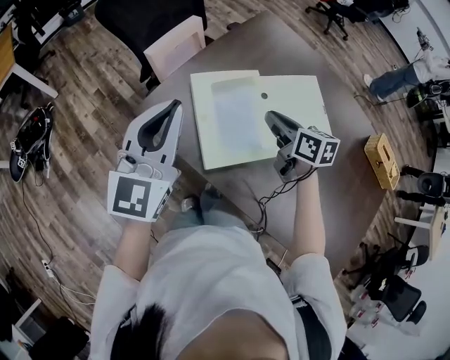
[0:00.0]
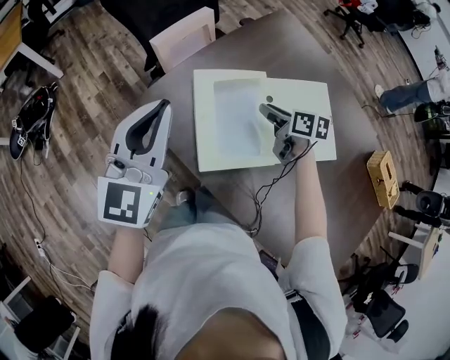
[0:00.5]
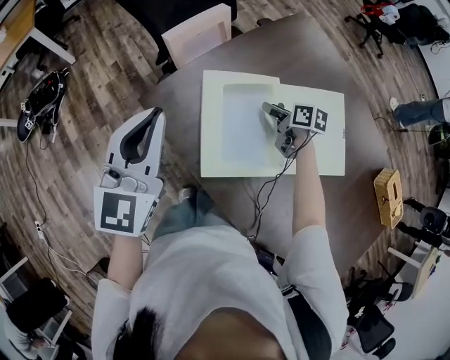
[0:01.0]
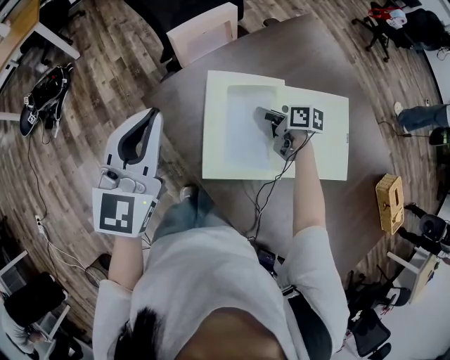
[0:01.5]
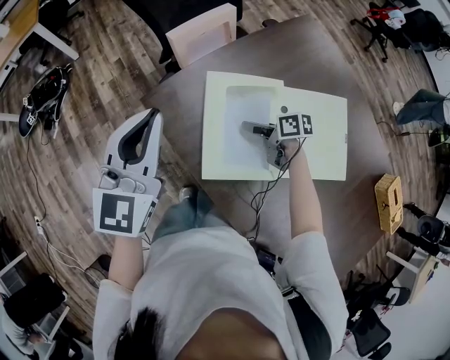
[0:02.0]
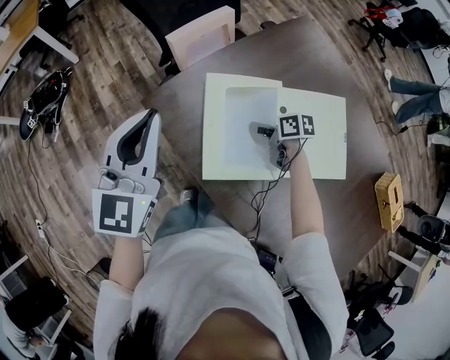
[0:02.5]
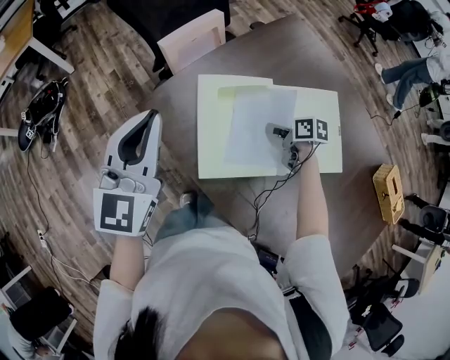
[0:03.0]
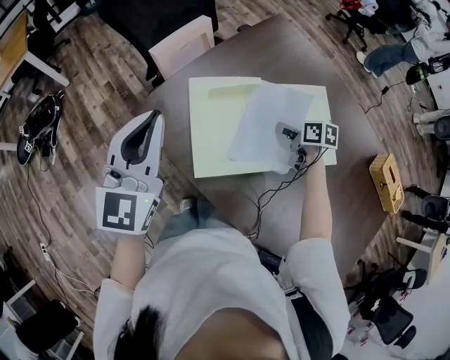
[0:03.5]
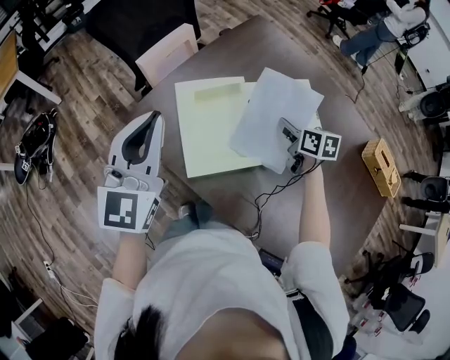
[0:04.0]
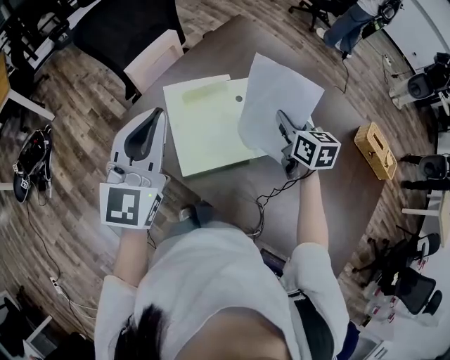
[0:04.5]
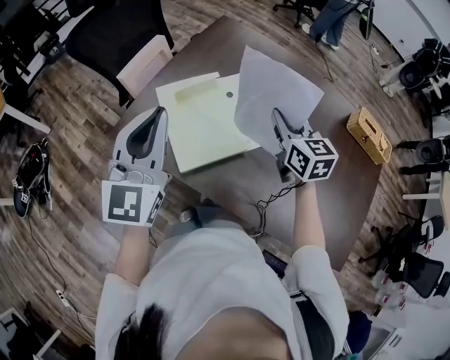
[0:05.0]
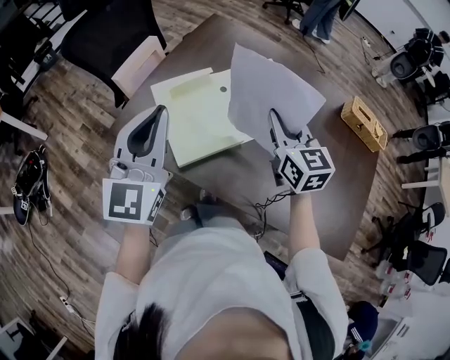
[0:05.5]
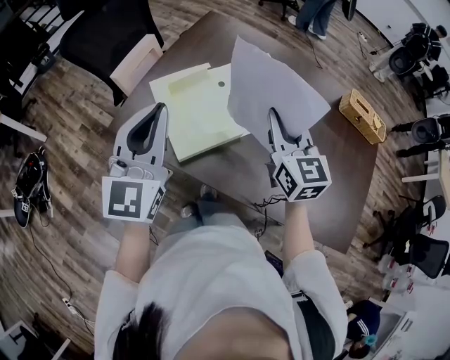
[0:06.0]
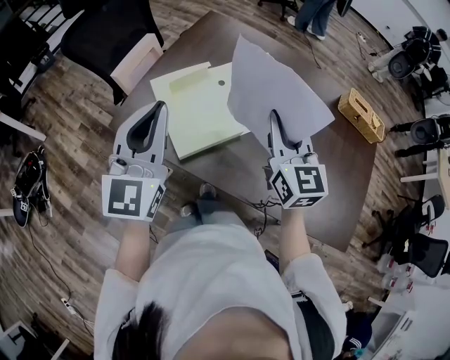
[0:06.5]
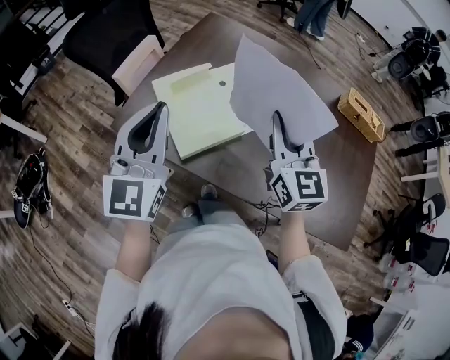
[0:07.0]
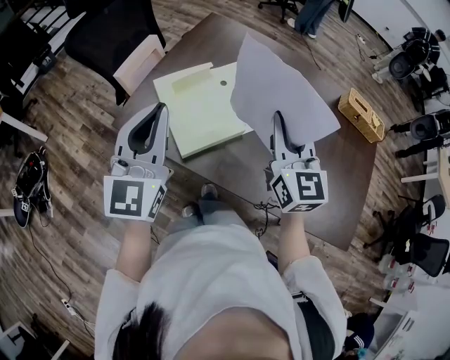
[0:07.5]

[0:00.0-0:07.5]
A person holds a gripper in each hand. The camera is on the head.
0:00.0 to 0:02.0: The left gripper shifts by approximately 5 cm. The right gripper is displaced downward by roughly 15 cm, turns by some 40 degrees, and opens its fingers.
0:02.0 to 0:04.0: The left gripper shifts by some 10 cm; the right gripper shifts by some 20 cm, changes its angle by approximately 40 degrees, and closes up.
0:04.0 to 0:05.5: The right gripper goes roughly 20 cm upward and backward, and rotates roughly 40 degrees, while the left gripper moves to the right and backward, roughly 10 cm.
0:05.5 to 0:07.5: The right gripper moves backward and upward, about 10 cm.

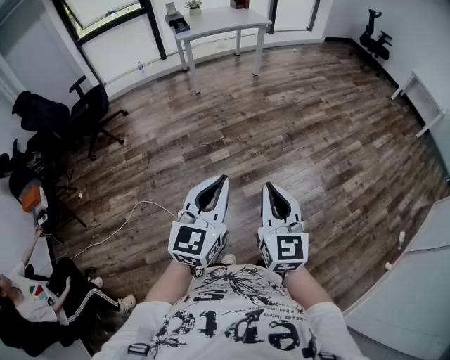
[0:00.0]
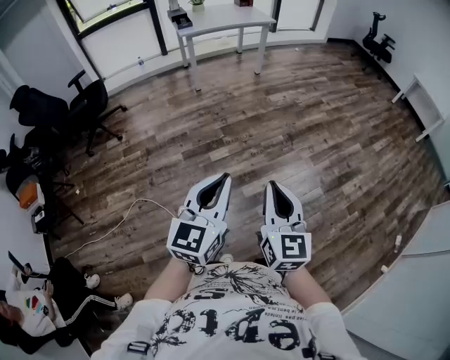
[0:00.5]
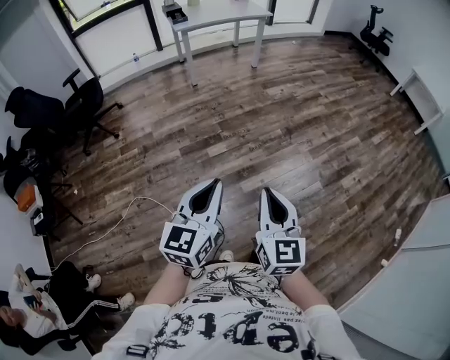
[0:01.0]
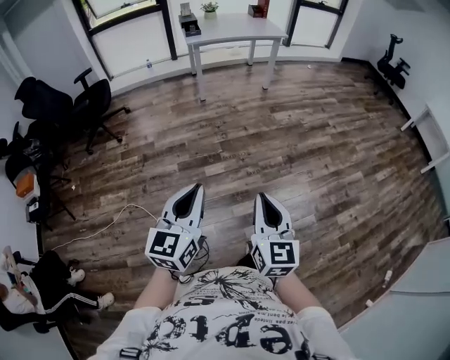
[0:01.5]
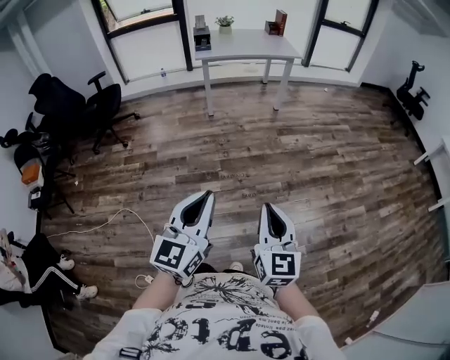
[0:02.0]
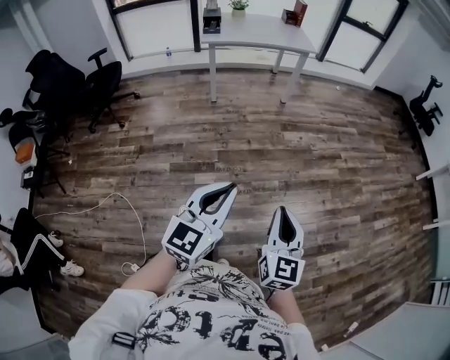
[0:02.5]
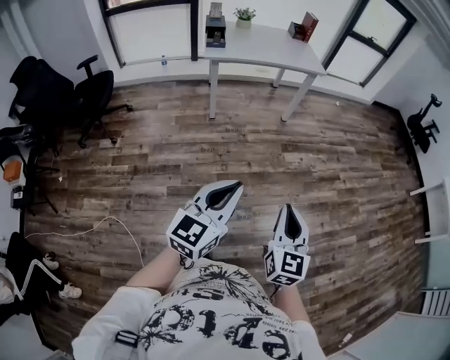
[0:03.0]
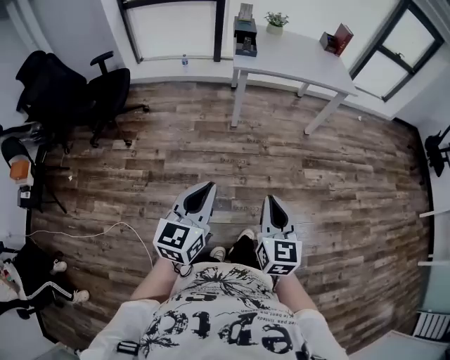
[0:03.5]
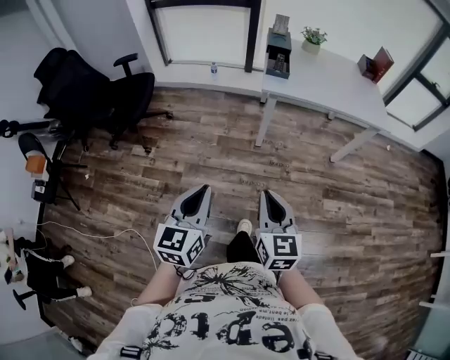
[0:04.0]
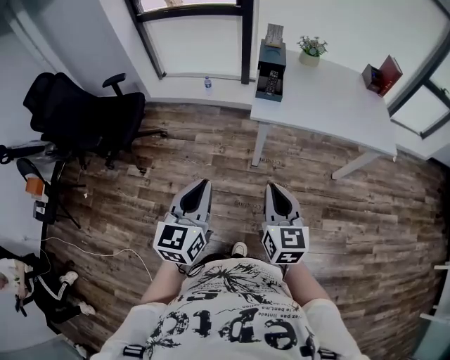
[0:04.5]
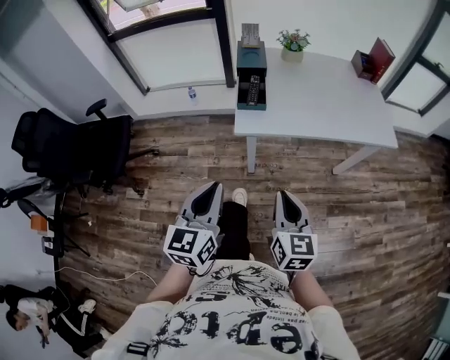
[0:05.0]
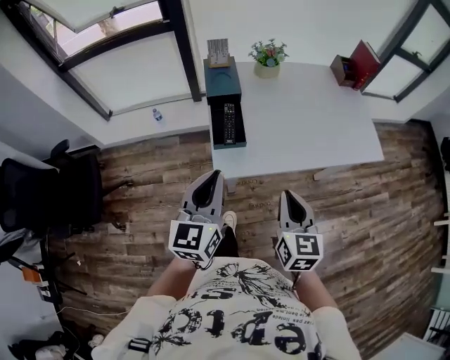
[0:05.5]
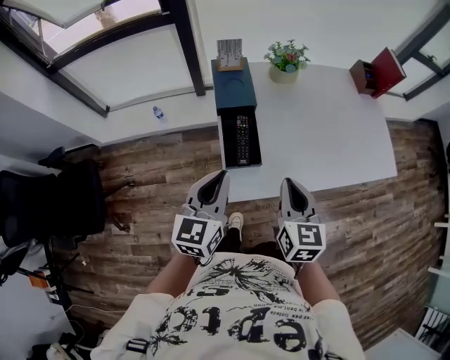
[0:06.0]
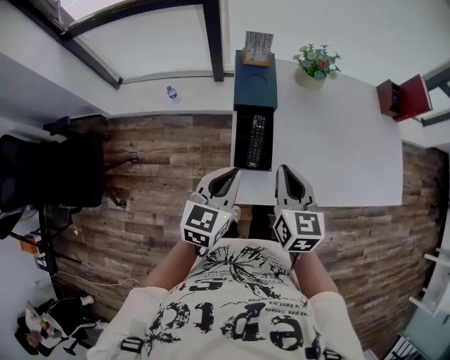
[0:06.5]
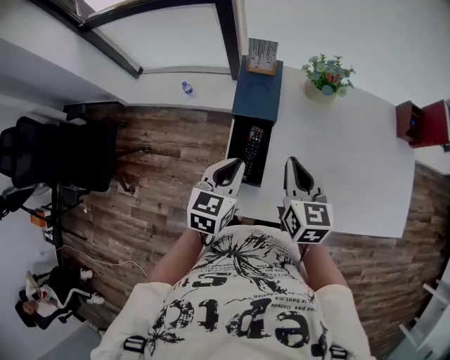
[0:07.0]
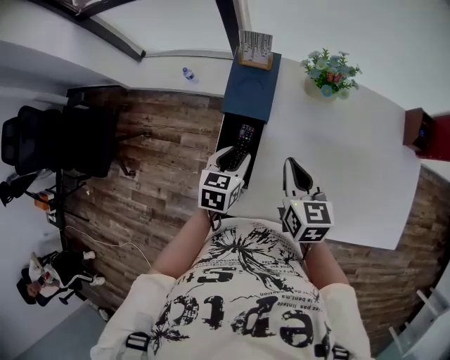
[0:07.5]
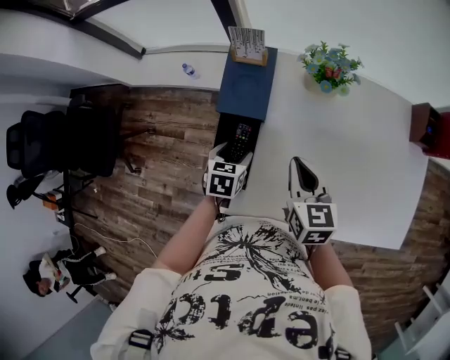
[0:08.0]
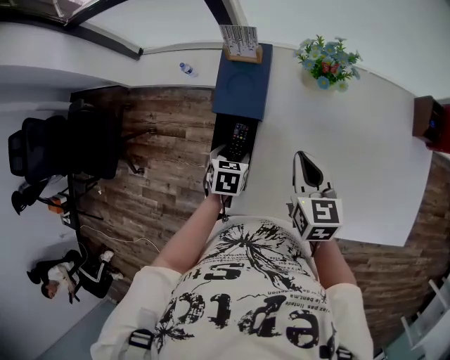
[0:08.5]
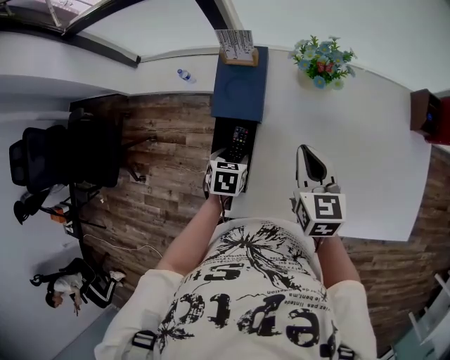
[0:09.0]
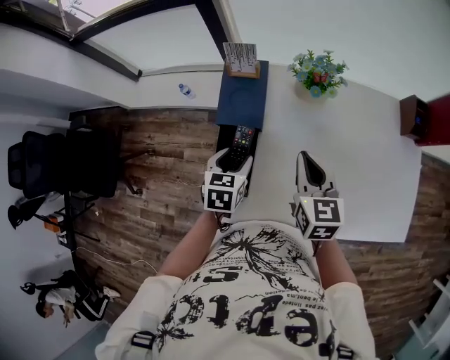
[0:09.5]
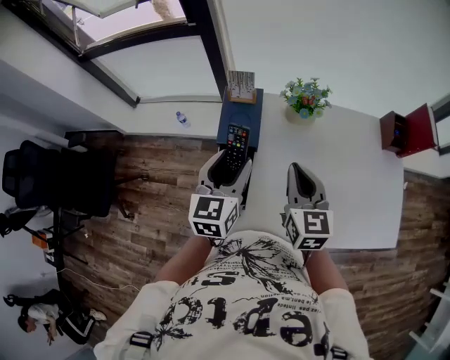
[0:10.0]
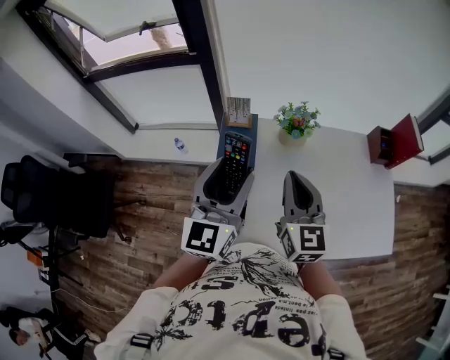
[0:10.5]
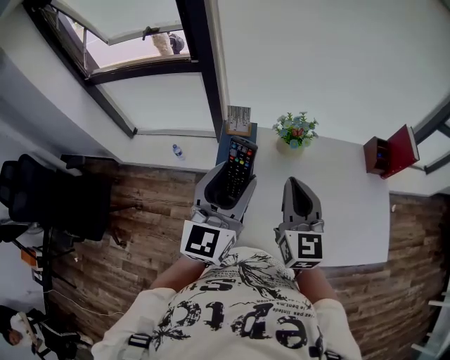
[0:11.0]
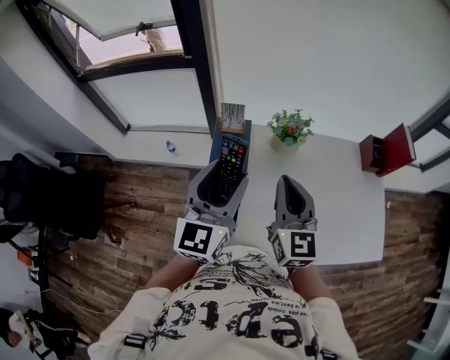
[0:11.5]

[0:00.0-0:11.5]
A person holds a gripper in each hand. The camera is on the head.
0:00.0 to 0:02.0: Both grippers travel together forward and to the right, about 25 cm.
0:02.0 to 0:04.0: The pair of grippers is taken about 70 cm. The right gripper rotates about 20 degrees. The left gripper swivels approximately 30 degrees.
0:04.0 to 0:06.0: The pair of grippers is taken forward, some 70 cm. The right gripper changes its angle by approximately 20 degrees.
0:06.0 to 0:07.5: The right gripper is displaced forward by about 20 cm, and rotates about 30 degrees. The left gripper goes about 25 cm downward, forward and to the right, turns by about 30 degrees, and opens its fingers.
0:07.5 to 0:09.5: The right gripper shifts by some 5 cm; the left gripper moves some 10 cm downward and comes back, and opens.
0:09.5 to 0:11.5: The right gripper goes approximately 15 cm upward, and swivels approximately 30 degrees. Meanwhile the left gripper travels upward by about 30 cm, and points its fingers approximately 50 degrees further upward.

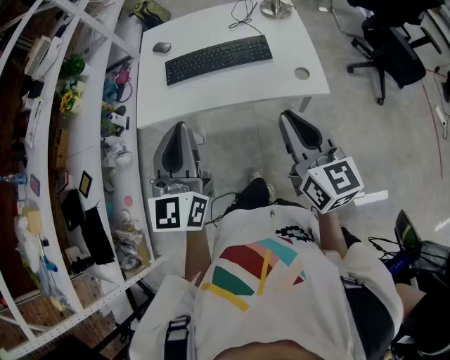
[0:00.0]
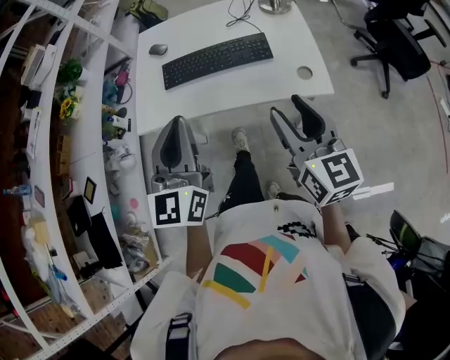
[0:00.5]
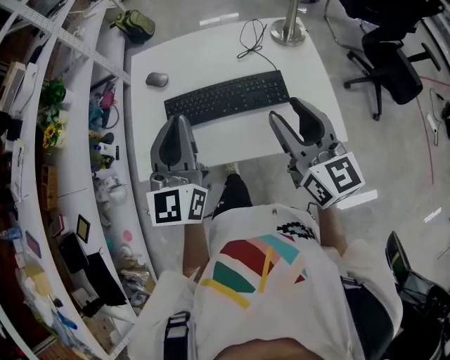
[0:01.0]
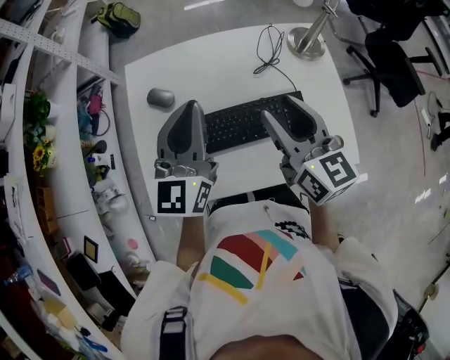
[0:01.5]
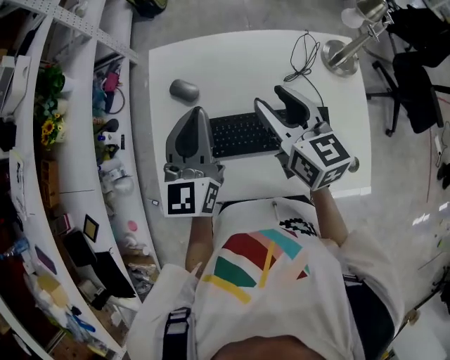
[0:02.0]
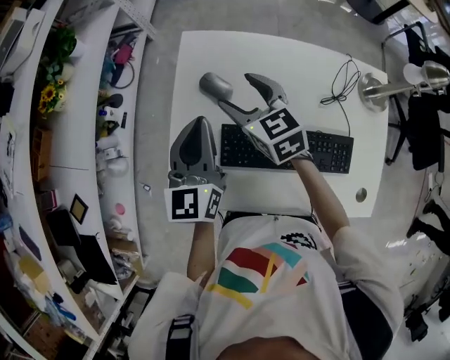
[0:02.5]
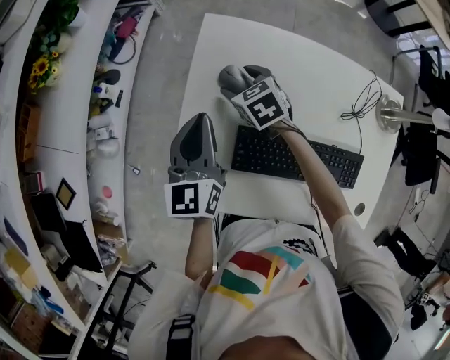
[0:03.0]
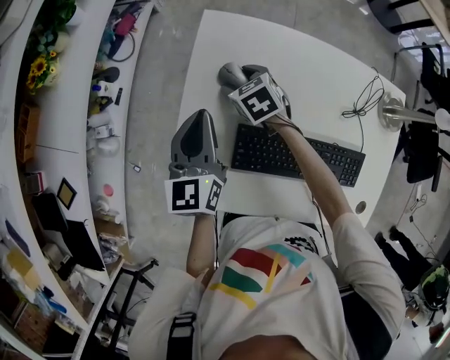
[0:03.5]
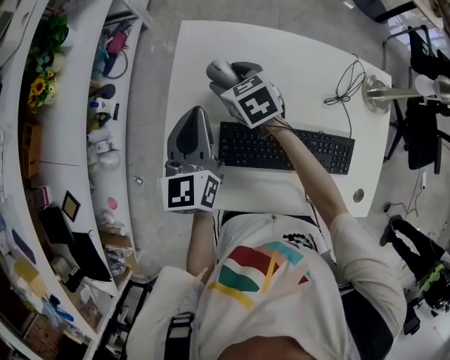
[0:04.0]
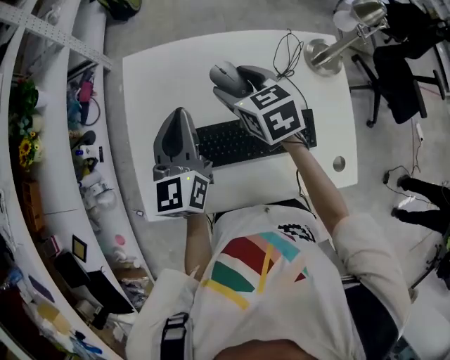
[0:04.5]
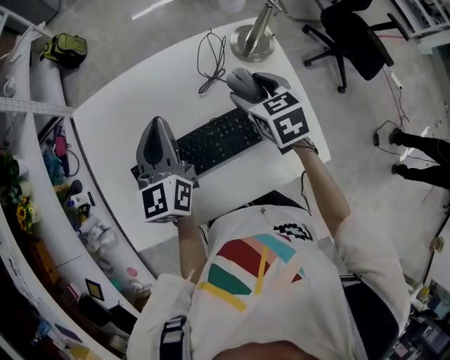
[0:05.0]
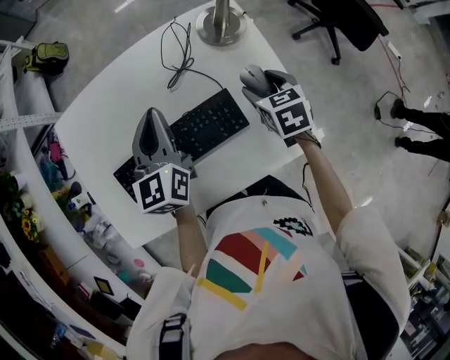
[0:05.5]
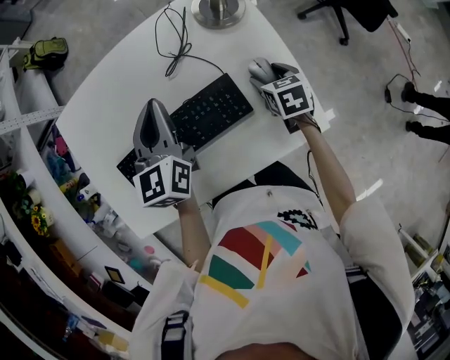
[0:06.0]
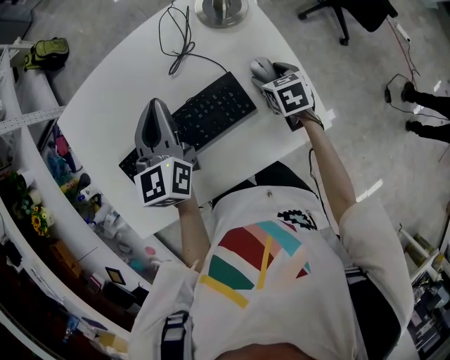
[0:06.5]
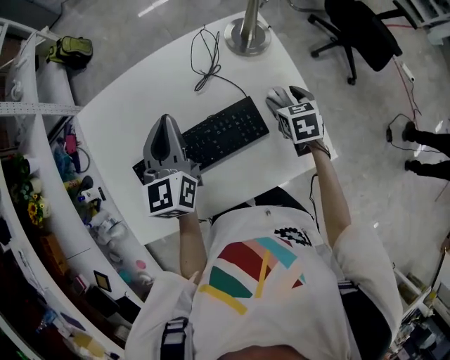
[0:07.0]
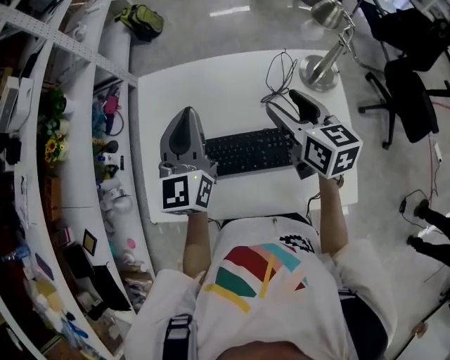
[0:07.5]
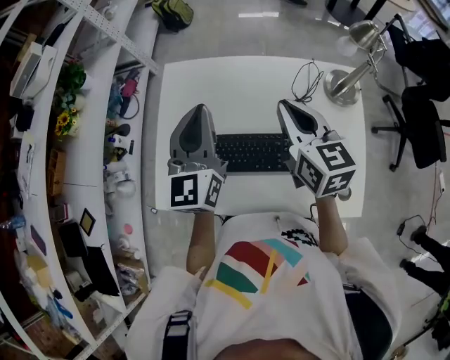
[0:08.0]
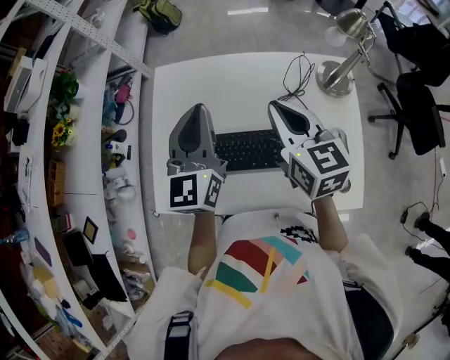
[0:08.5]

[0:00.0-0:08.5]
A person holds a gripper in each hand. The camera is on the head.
0:00.0 to 0:02.0: The two grippers travel together, forward, about 50 cm. The right gripper opens up.
0:02.0 to 0:04.0: The left gripper travels to the left, forward and downward by some 20 cm; the right gripper heads forward, to the left and downward, covering roughly 30 cm, and points its fingers some 30 degrees further downward.
0:04.0 to 0:06.5: The left gripper ends up some 35 cm from where it was, and swivels some 30 degrees. Meanwhile the right gripper moves some 60 cm, and rotates roughly 50 degrees.
0:06.5 to 0:08.5: The left gripper moves to the left and upward, roughly 20 cm, and changes its angle by some 20 degrees. Meanwhile the right gripper moves to the left and upward, about 40 cm, angles its fingers upward, by roughly 40 degrees, and closes its fingers.
